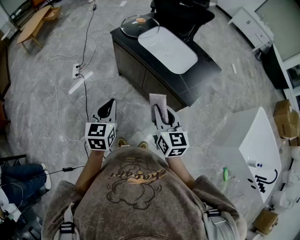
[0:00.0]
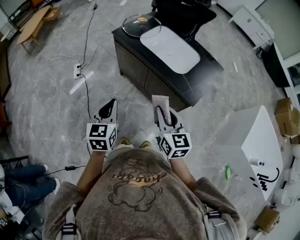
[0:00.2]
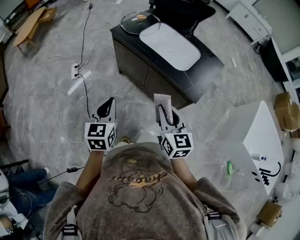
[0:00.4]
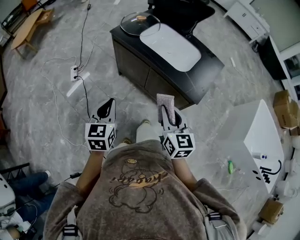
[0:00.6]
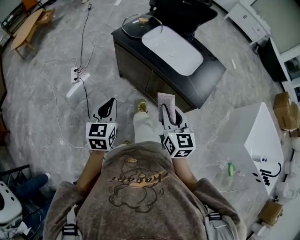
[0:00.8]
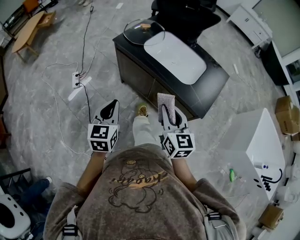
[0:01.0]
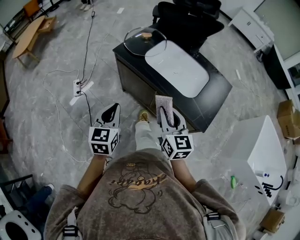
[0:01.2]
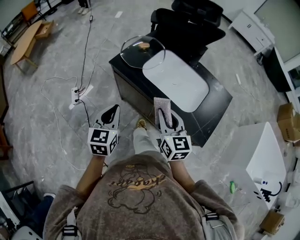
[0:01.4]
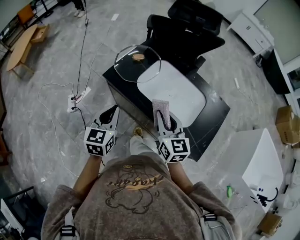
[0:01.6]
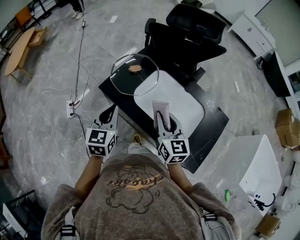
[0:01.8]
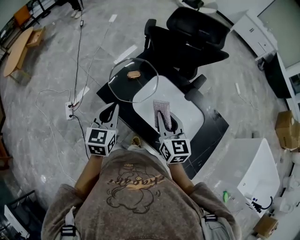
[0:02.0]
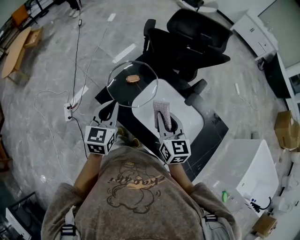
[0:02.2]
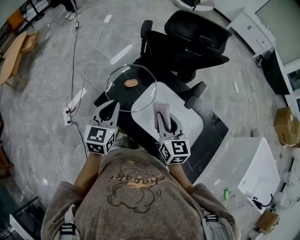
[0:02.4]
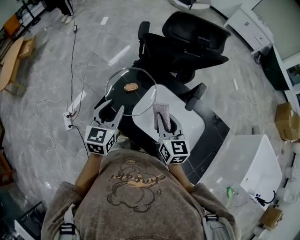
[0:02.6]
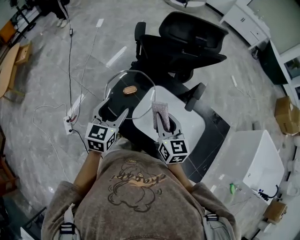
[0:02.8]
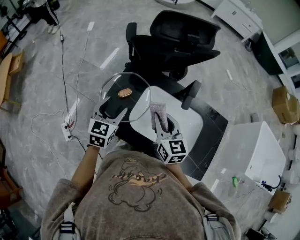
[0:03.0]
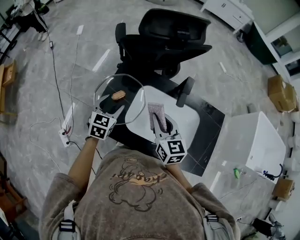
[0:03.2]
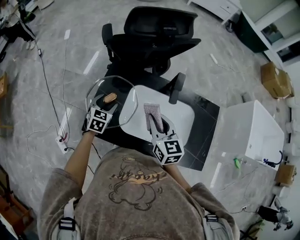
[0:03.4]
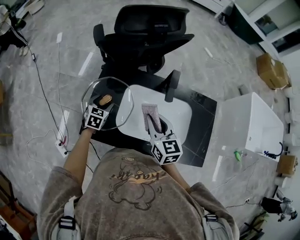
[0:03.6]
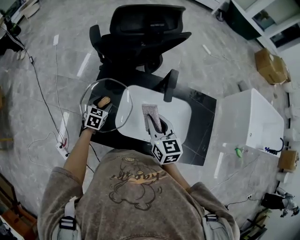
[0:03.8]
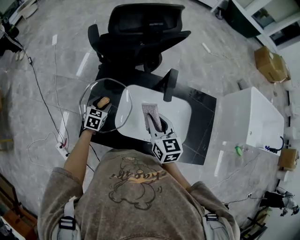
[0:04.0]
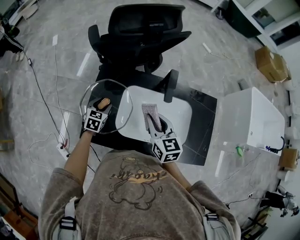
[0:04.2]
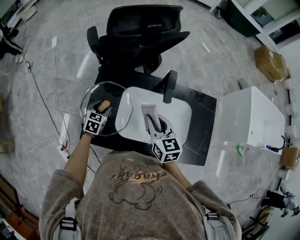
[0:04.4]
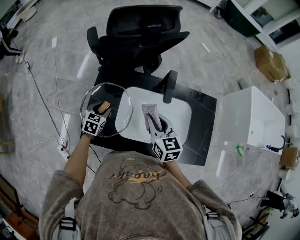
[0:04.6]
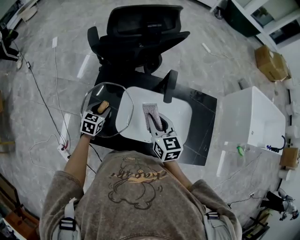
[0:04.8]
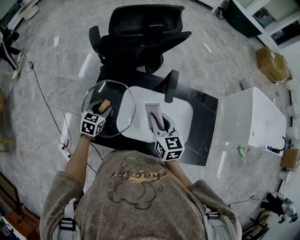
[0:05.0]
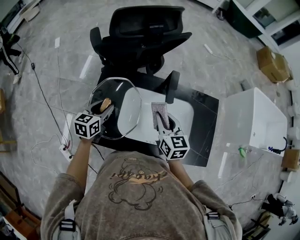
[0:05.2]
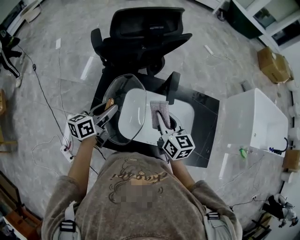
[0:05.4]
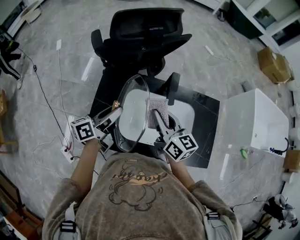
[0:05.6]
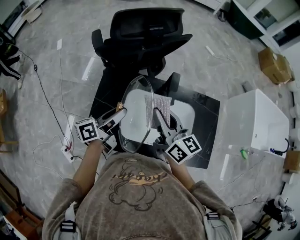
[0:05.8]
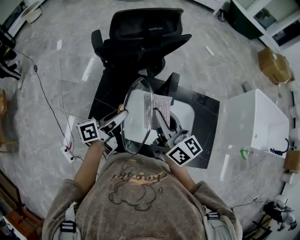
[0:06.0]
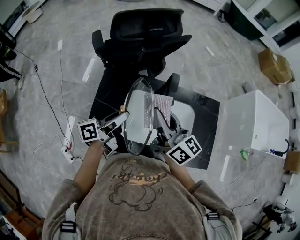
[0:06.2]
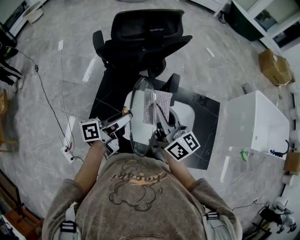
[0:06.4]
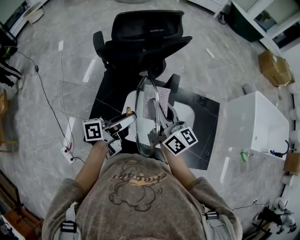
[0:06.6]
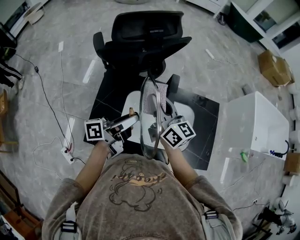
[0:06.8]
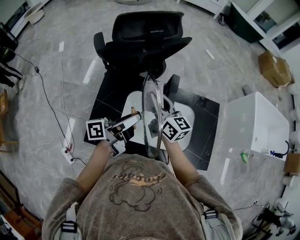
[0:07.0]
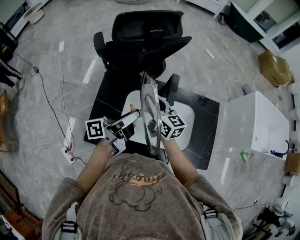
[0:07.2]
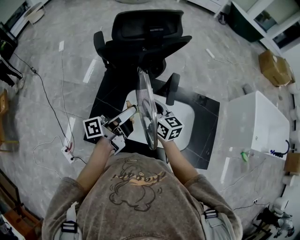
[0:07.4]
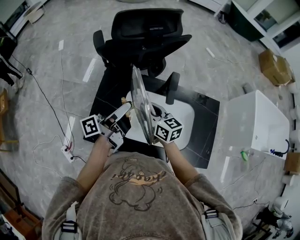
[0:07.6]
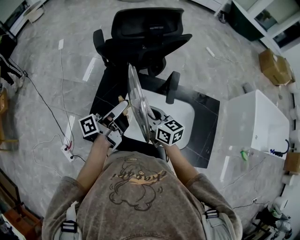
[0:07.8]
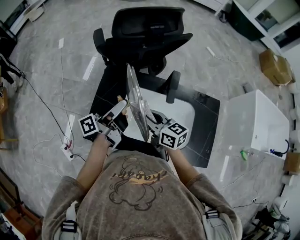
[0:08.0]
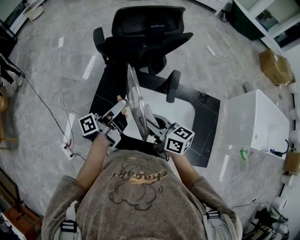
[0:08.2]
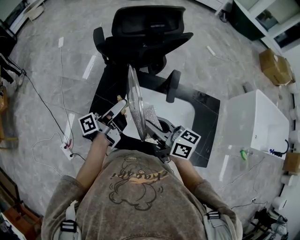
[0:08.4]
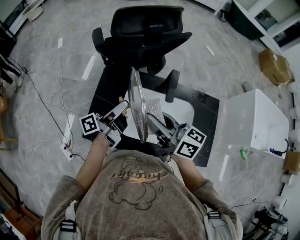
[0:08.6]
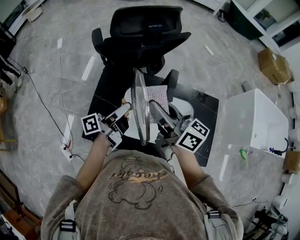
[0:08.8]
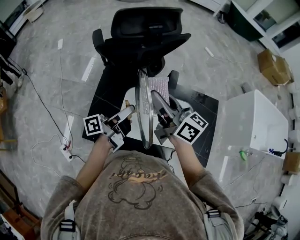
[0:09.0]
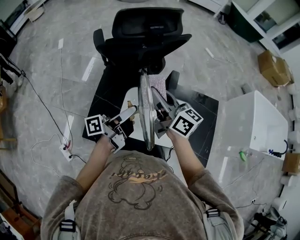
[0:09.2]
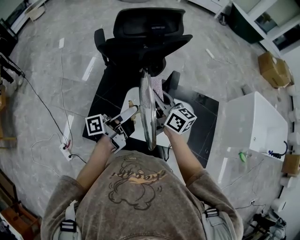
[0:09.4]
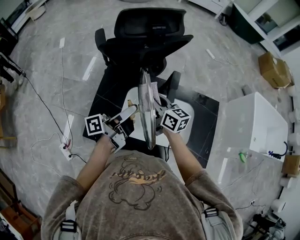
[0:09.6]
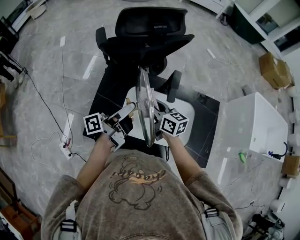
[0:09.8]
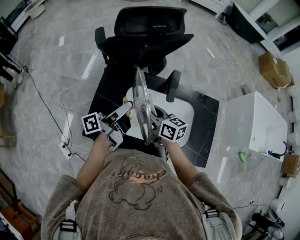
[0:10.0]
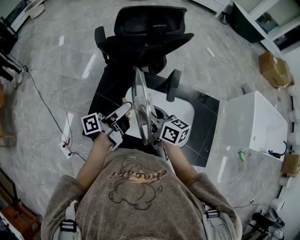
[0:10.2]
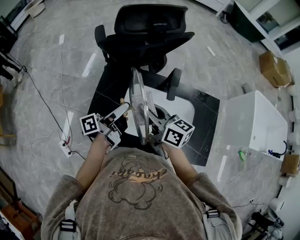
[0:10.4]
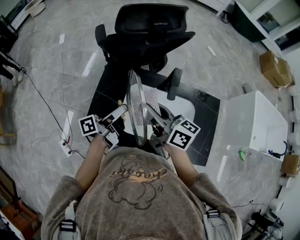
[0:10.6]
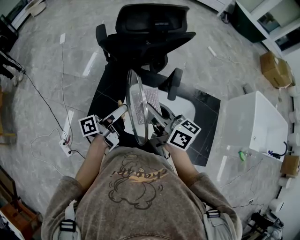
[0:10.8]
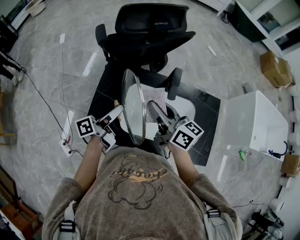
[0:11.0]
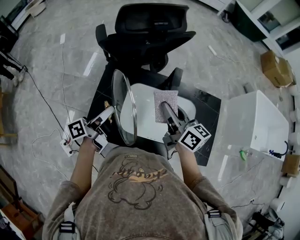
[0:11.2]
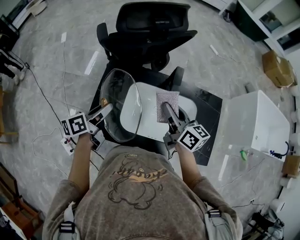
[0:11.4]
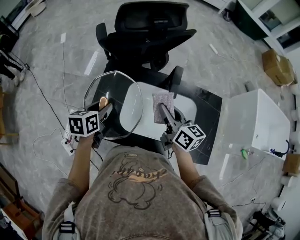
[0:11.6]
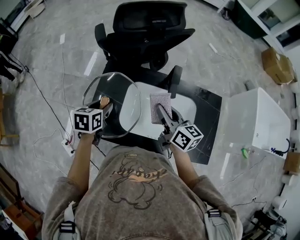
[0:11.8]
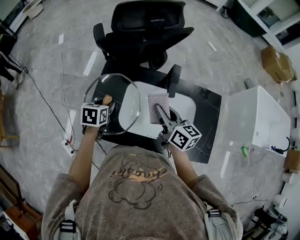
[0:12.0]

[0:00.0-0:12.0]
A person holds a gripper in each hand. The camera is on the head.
0:00.0 to 0:01.6: Both grippers move forward, some 35 cm.
0:01.6 to 0:03.0: Both grippers move forward, some 25 cm. The left gripper opens its fingers.
0:03.0 to 0:04.4: The right gripper ends up about 5 cm from where it was. The left gripper shifts roughly 20 cm downward and forward, and swivels roughly 30 degrees.
0:04.4 to 0:06.0: The right gripper heads upward, covering about 15 cm, and swivels some 40 degrees; the left gripper heads upward and to the right, covering about 20 cm, and angles its fingers upward, by about 40 degrees.
0:06.0 to 0:07.6: The right gripper moves downward, approximately 15 cm, and turns by some 20 degrees, while the left gripper heads upward, covering about 5 cm, and rotates some 30 degrees.
0:07.6 to 0:09.0: The right gripper goes about 15 cm upward, and rotates roughly 20 degrees.
0:09.0 to 0:10.4: The right gripper shifts some 10 cm downward.
0:10.4 to 0:12.0: The right gripper heads to the right, covering some 5 cm; the left gripper travels downward and to the left by roughly 15 cm, and tilts its fingers approximately 60 degrees downward.

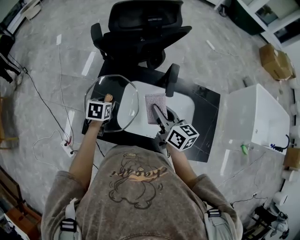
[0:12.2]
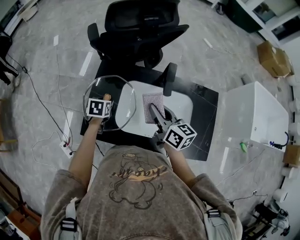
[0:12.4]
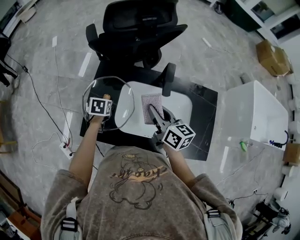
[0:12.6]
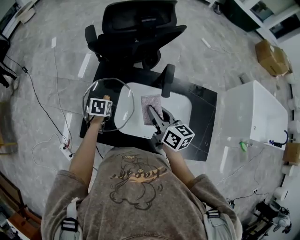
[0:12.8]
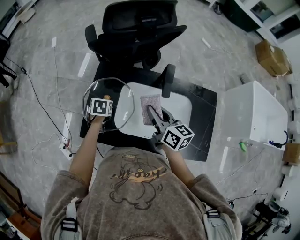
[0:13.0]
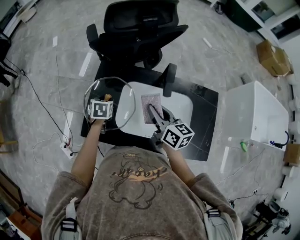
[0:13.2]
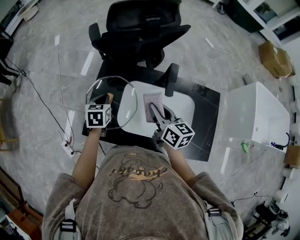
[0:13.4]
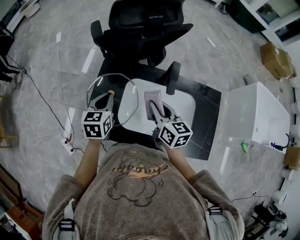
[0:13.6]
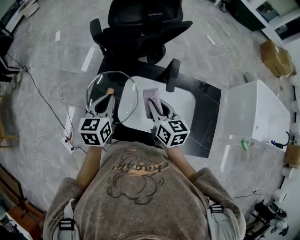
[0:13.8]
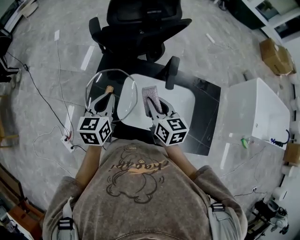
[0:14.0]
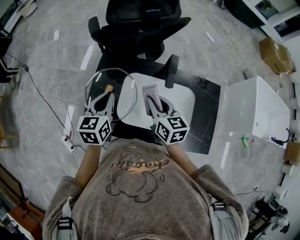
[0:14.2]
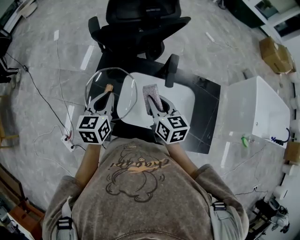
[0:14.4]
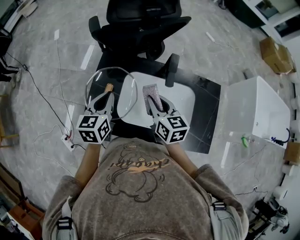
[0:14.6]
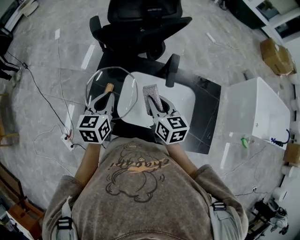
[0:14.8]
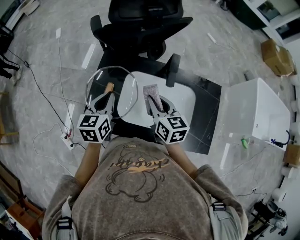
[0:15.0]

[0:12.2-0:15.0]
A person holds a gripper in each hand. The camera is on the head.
0:12.2 to 0:13.6: The left gripper shifts roughly 10 cm upward, changes its angle by some 20 degrees, and closes up.
0:13.6 to 0:15.0: The grippers make only small movements.

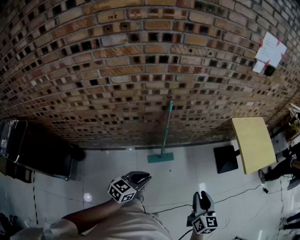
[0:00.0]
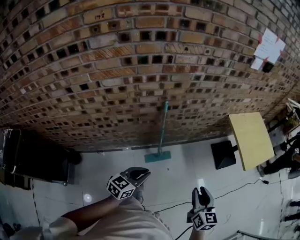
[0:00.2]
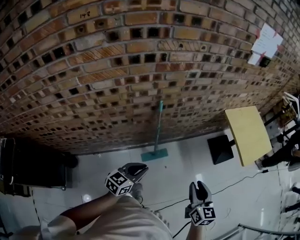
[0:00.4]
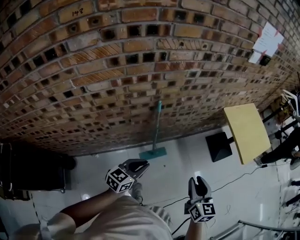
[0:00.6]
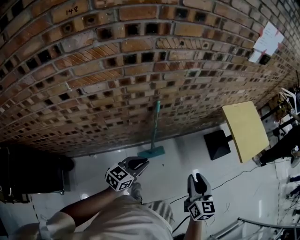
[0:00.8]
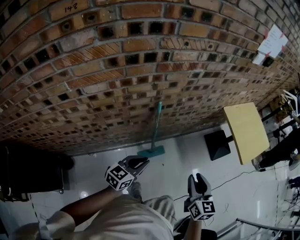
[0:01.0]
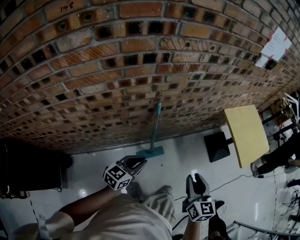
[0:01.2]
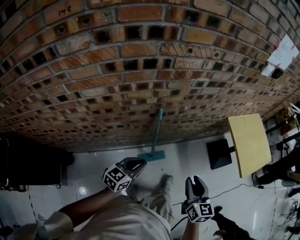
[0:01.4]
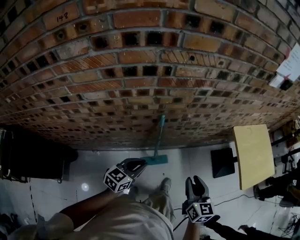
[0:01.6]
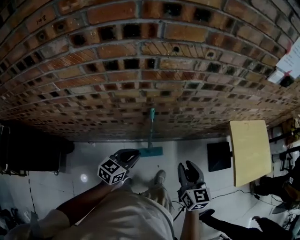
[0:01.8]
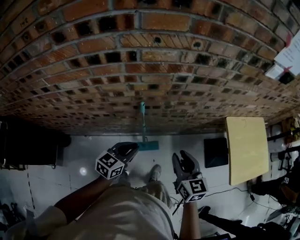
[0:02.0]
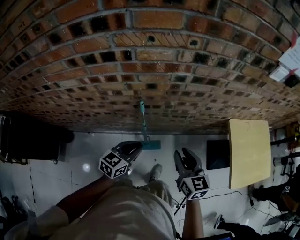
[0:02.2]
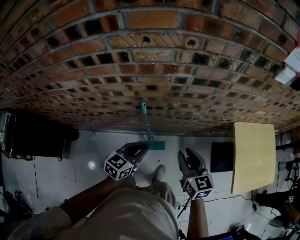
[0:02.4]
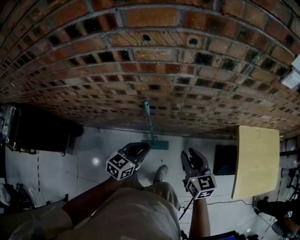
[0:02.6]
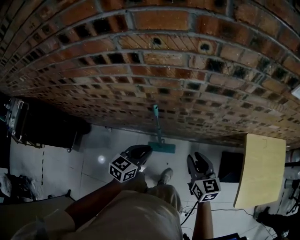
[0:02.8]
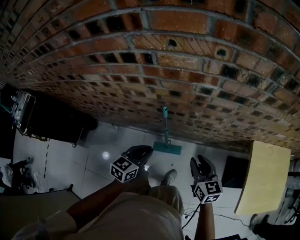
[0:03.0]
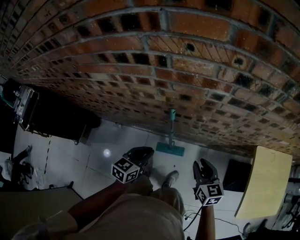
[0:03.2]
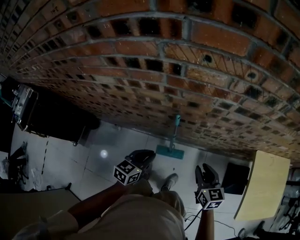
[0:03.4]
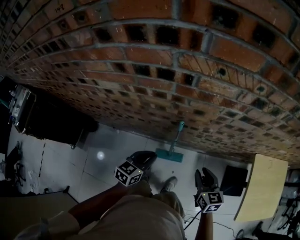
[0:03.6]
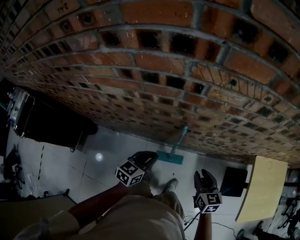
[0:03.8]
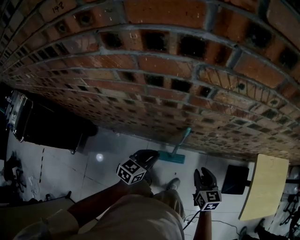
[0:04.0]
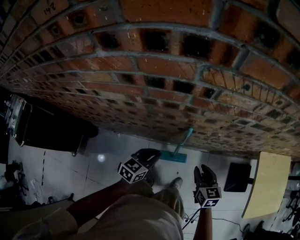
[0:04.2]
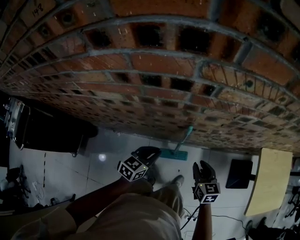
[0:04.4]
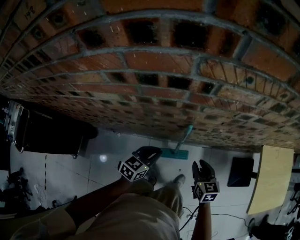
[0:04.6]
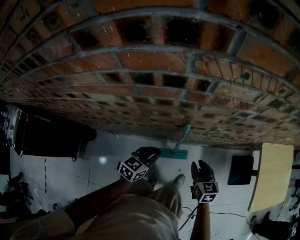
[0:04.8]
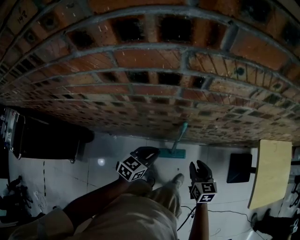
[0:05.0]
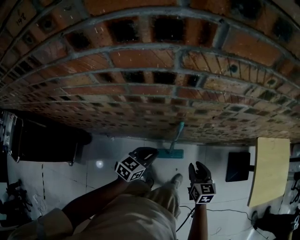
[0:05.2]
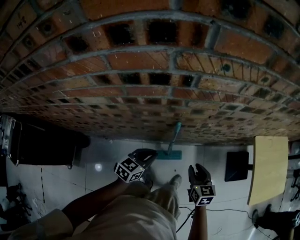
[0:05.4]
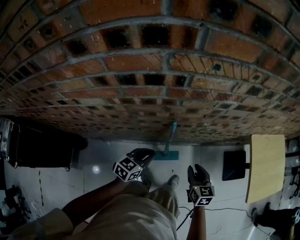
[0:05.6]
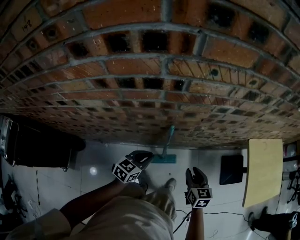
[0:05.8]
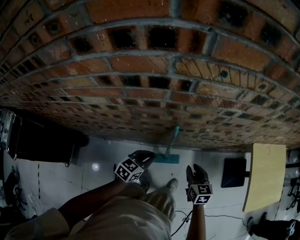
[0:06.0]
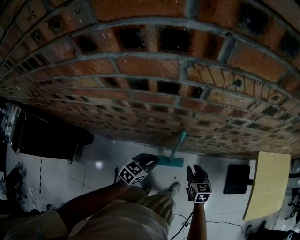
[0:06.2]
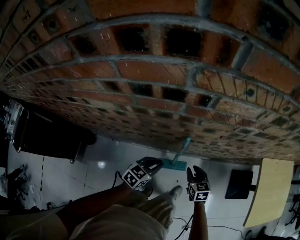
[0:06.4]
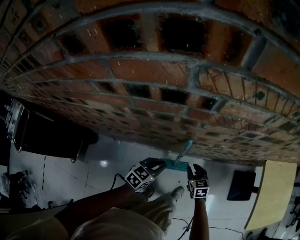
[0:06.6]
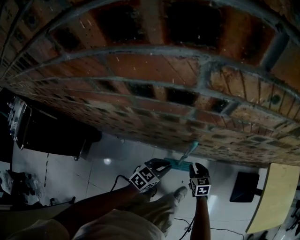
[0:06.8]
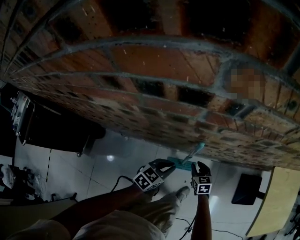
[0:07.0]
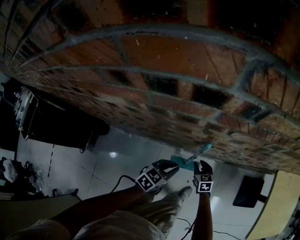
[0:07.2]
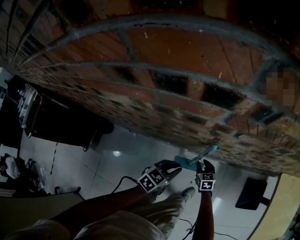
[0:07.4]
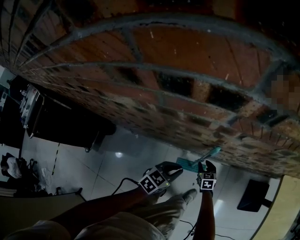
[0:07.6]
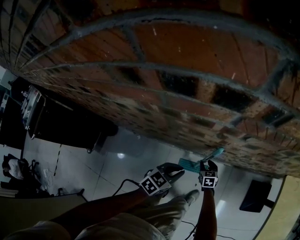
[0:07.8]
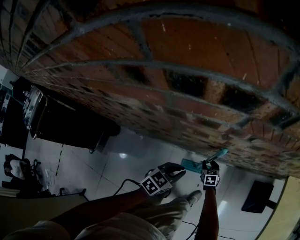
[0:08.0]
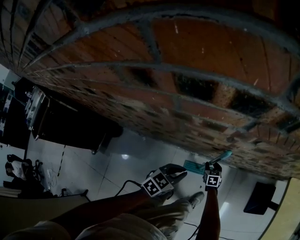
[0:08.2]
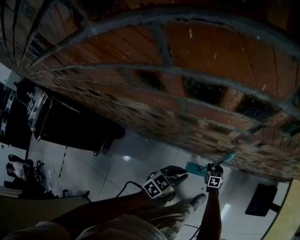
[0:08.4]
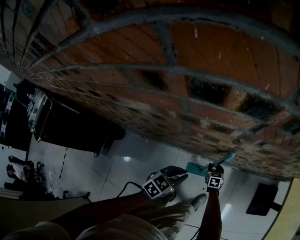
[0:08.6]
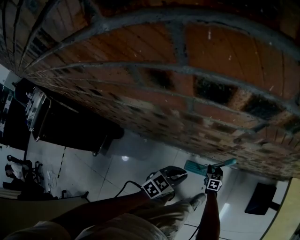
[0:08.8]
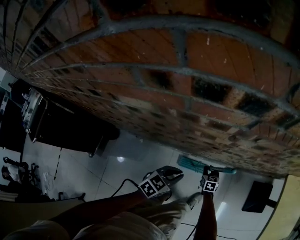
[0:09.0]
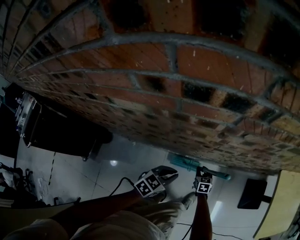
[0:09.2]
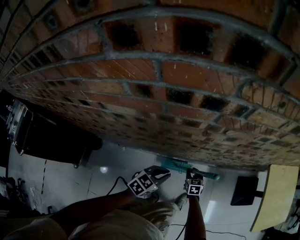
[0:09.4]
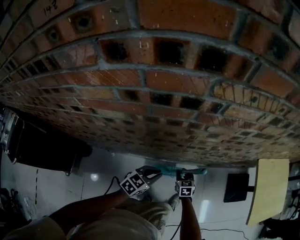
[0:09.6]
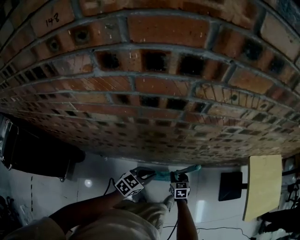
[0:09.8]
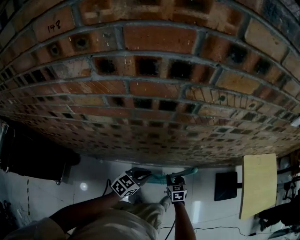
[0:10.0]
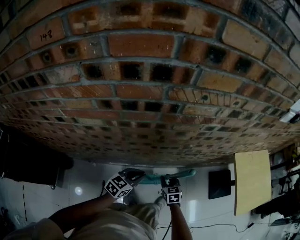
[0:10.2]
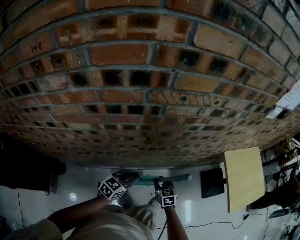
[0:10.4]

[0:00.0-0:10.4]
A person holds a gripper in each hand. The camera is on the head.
0:00.0 to 0:01.4: Both grippers move forward and to the left, roughly 20 cm.
0:01.4 to 0:03.0: The right gripper changes place by about 20 cm, and turns by roughly 30 degrees. The left gripper moves some 15 cm, and turns by roughly 30 degrees.
0:03.0 to 0:04.4: The right gripper heads to the left and downward, covering roughly 15 cm, while the left gripper goes roughly 15 cm to the left and forward.
0:04.4 to 0:06.0: The grippers stay close to where they were, moving slightly.
0:06.0 to 0:07.4: The left gripper moves downward, some 10 cm. The right gripper heads downward and to the left, covering some 25 cm.
0:07.4 to 0:09.0: The right gripper shifts approximately 5 cm downward. Meanwhile the left gripper changes place by about 5 cm.
0:09.0 to 0:10.4: The left gripper goes roughly 15 cm upward and to the right. Meanwhile the right gripper moves upward, about 25 cm.
